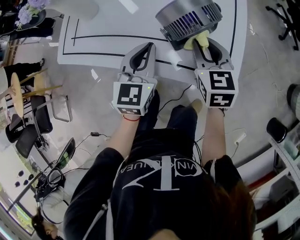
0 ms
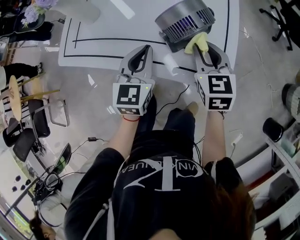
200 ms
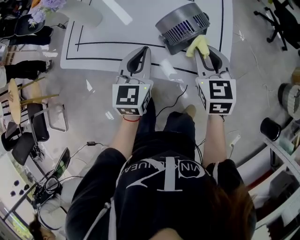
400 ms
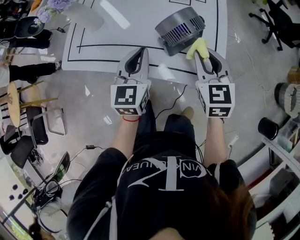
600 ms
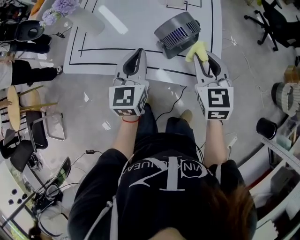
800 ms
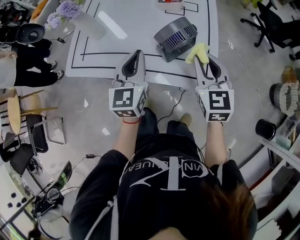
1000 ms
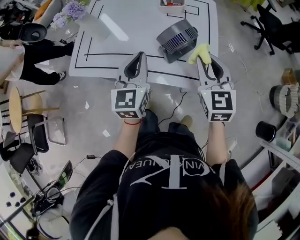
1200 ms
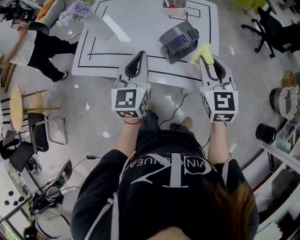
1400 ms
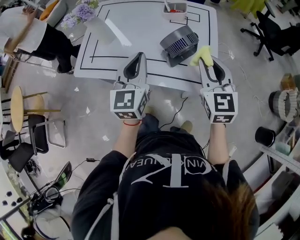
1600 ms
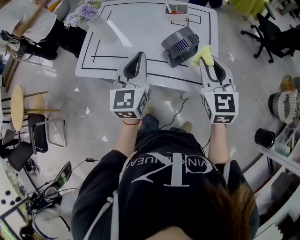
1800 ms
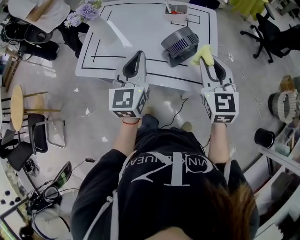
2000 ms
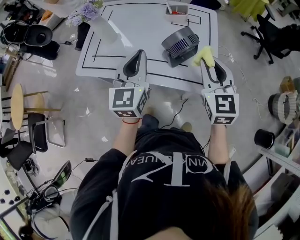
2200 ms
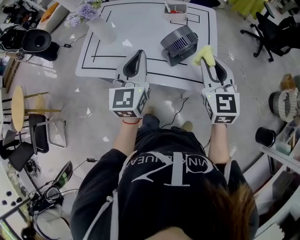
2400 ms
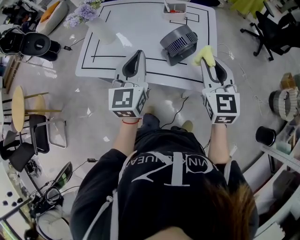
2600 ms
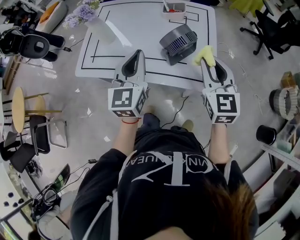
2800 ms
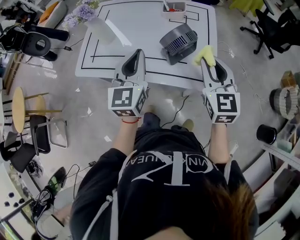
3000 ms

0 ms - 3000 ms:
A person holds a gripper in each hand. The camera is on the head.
0 ms - 1600 ms: The left gripper travels upward by approximately 15 cm, while the right gripper travels upward and backward by about 20 cm.
1600 ms - 3000 ms: The grippers stay close to where they were, moving slightly.

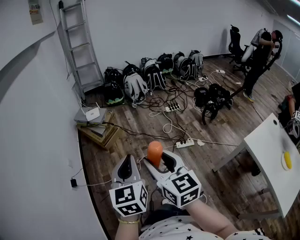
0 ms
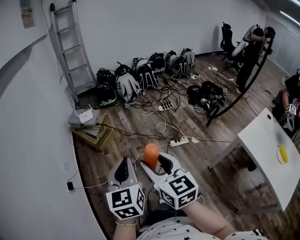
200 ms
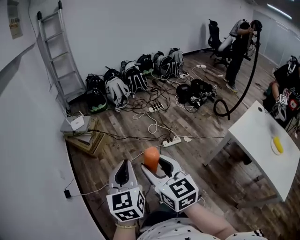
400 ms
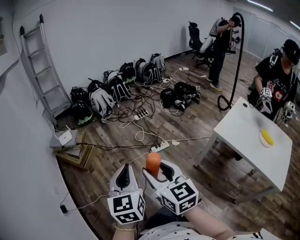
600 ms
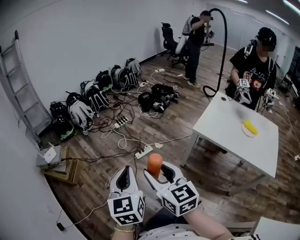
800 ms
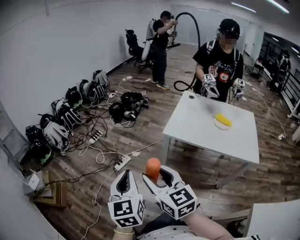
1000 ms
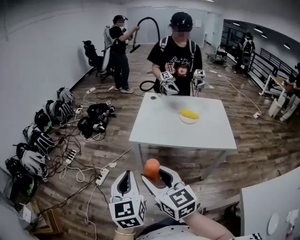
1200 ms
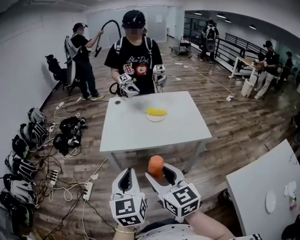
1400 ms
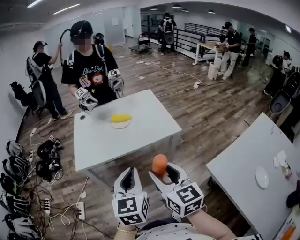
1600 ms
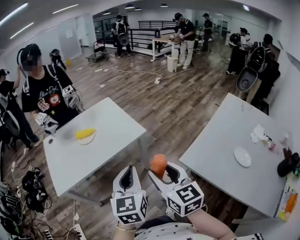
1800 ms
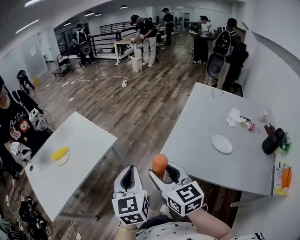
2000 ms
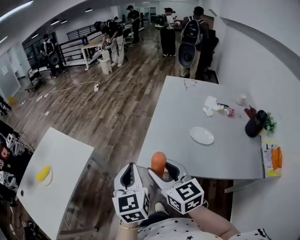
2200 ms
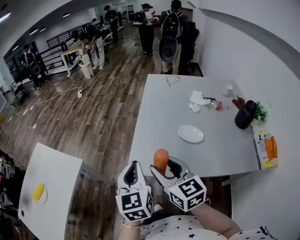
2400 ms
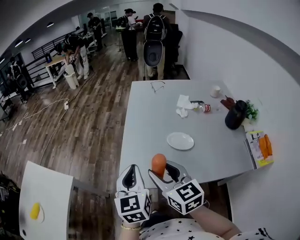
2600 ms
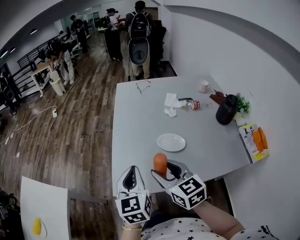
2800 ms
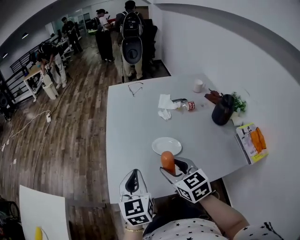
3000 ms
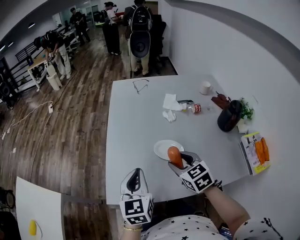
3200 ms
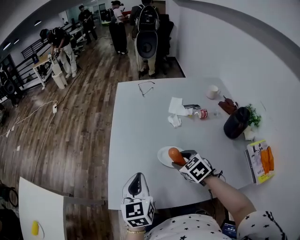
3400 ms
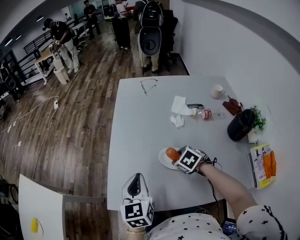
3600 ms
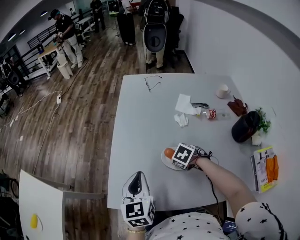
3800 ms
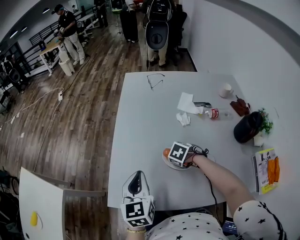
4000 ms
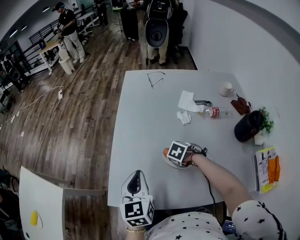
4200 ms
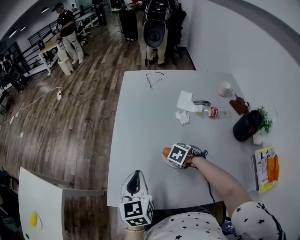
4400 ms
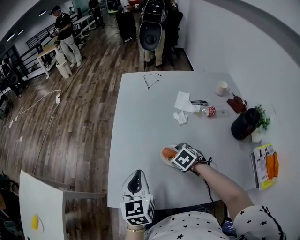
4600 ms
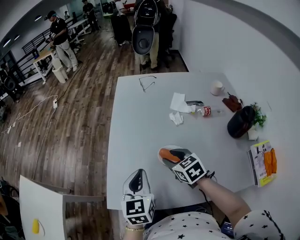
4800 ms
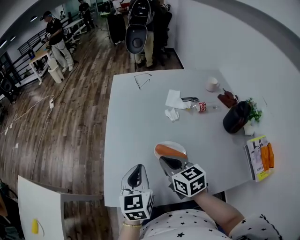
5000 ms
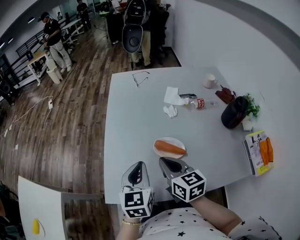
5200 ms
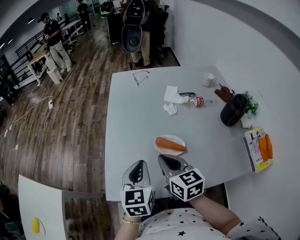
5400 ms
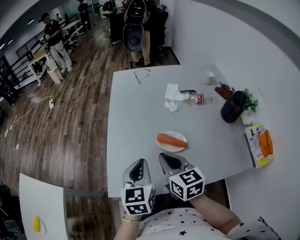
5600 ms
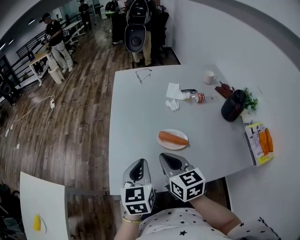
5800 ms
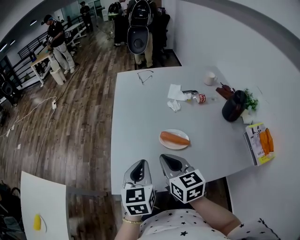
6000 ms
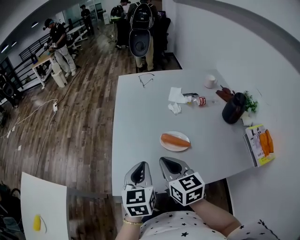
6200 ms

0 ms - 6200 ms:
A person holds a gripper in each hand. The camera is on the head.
0 ms - 1600 ms: The two grippers travel together, approximately 70 cm. The right gripper changes its angle by approximately 90 degrees. The left gripper turns by about 90 degrees.
1600 ms - 3200 ms: The two grippers travel together, approximately 60 cm. The left gripper changes its angle by roughly 70 degrees. Meanwhile the right gripper rotates about 70 degrees.
3200 ms - 4600 ms: The left gripper shifts by about 5 cm, while the right gripper shifts roughly 15 cm downward, and swivels roughly 30 degrees.
4600 ms - 6200 ms: The left gripper is displaced backward by some 5 cm. The right gripper shifts some 25 cm upward, backward and to the left, points its fingers roughly 40 degrees further upward, and closes up.

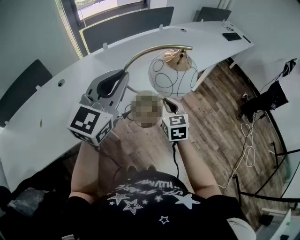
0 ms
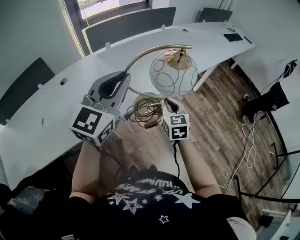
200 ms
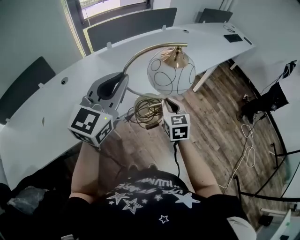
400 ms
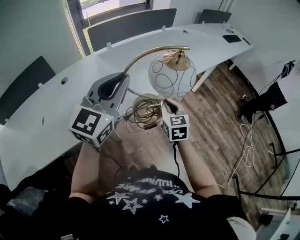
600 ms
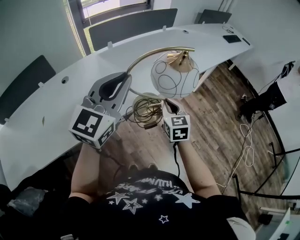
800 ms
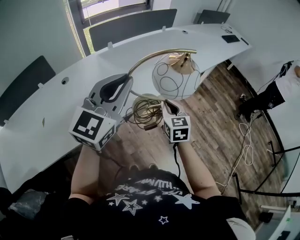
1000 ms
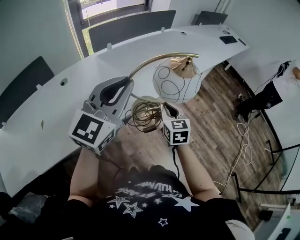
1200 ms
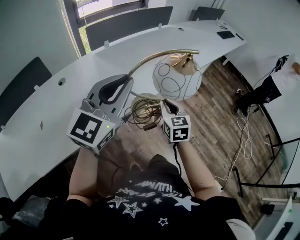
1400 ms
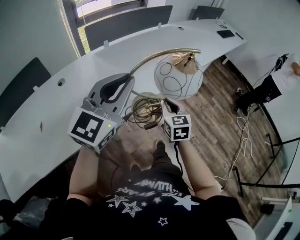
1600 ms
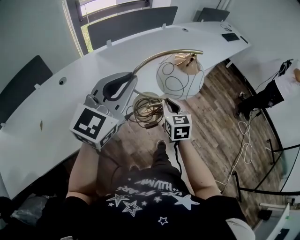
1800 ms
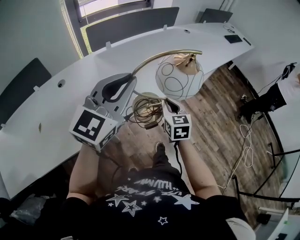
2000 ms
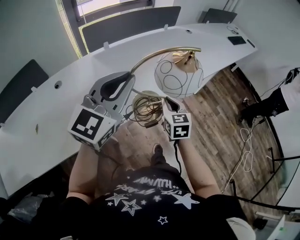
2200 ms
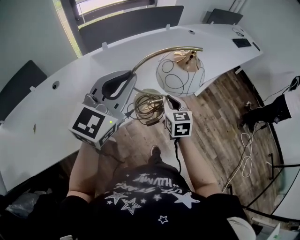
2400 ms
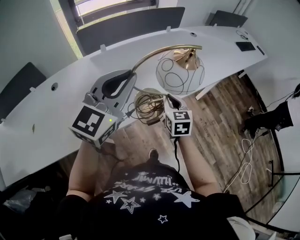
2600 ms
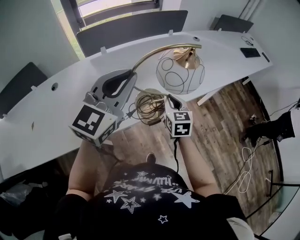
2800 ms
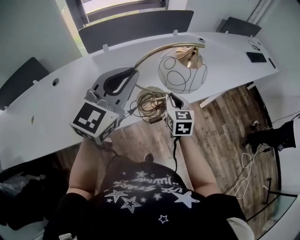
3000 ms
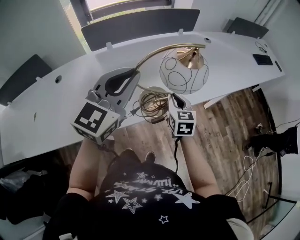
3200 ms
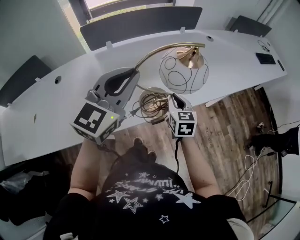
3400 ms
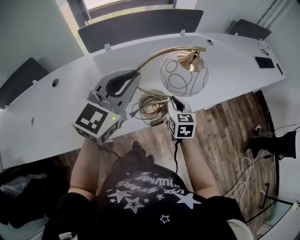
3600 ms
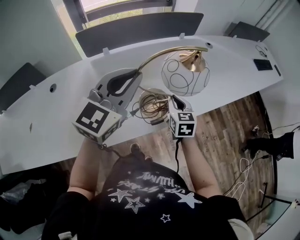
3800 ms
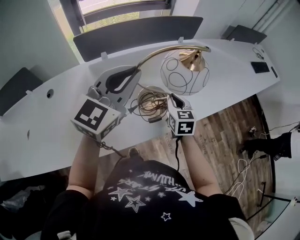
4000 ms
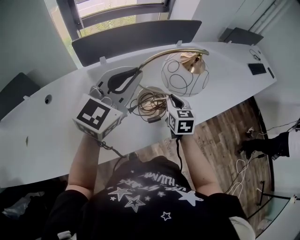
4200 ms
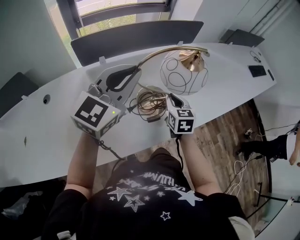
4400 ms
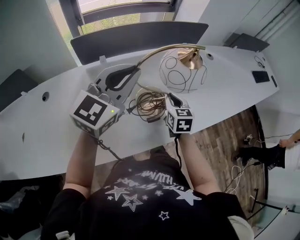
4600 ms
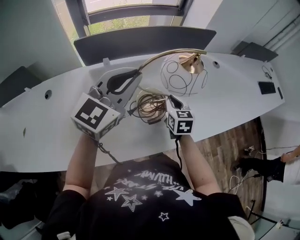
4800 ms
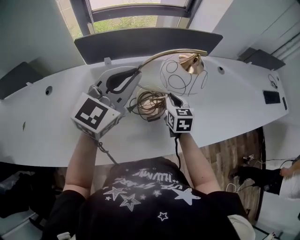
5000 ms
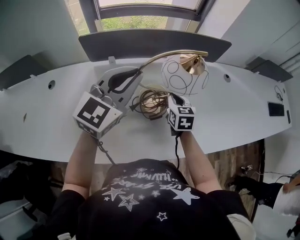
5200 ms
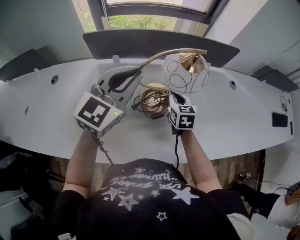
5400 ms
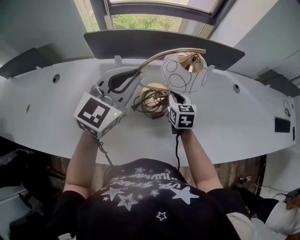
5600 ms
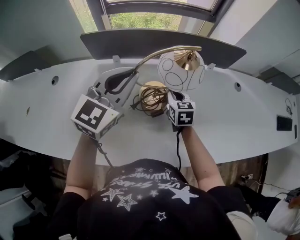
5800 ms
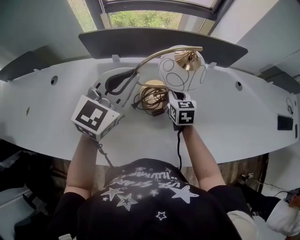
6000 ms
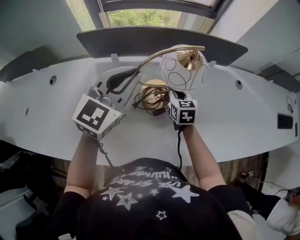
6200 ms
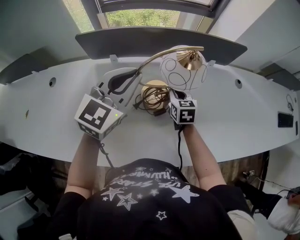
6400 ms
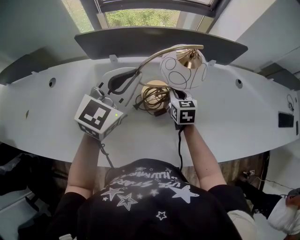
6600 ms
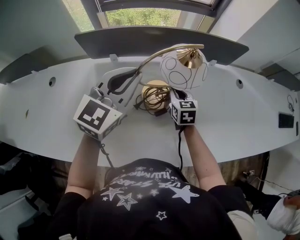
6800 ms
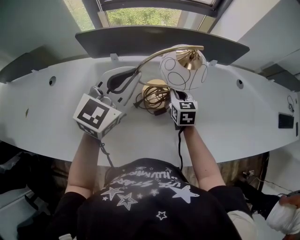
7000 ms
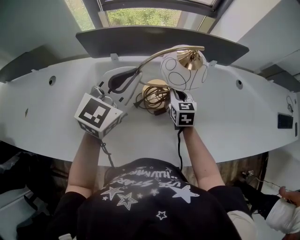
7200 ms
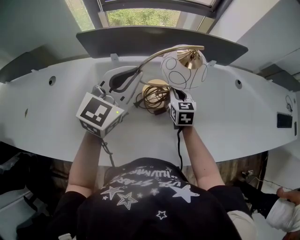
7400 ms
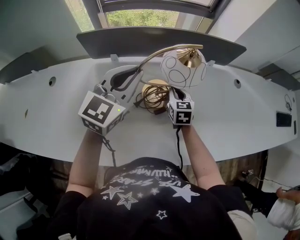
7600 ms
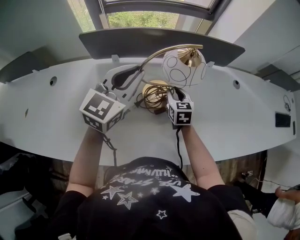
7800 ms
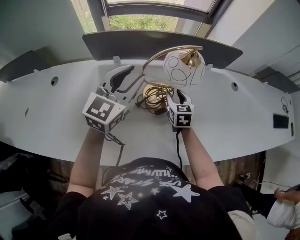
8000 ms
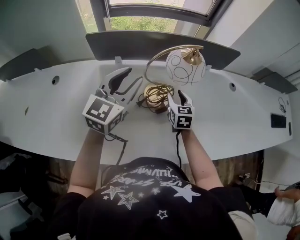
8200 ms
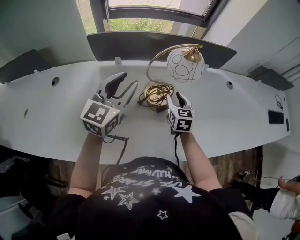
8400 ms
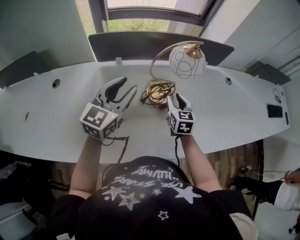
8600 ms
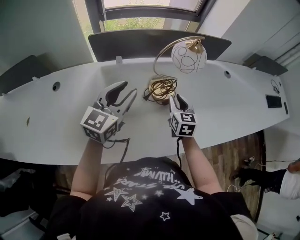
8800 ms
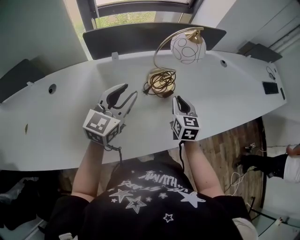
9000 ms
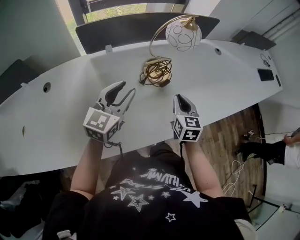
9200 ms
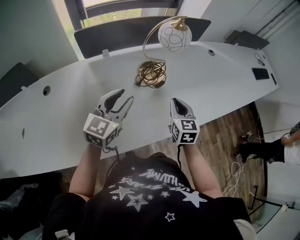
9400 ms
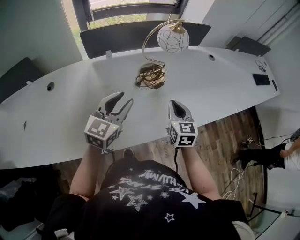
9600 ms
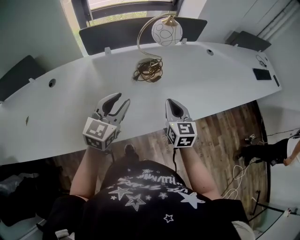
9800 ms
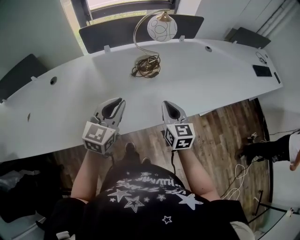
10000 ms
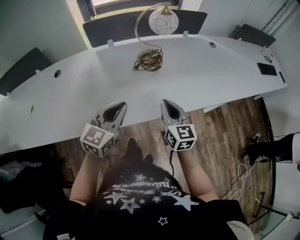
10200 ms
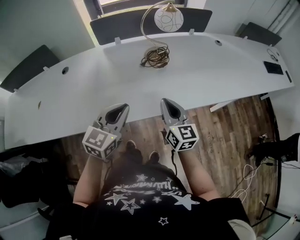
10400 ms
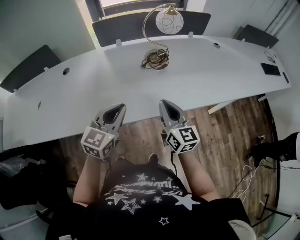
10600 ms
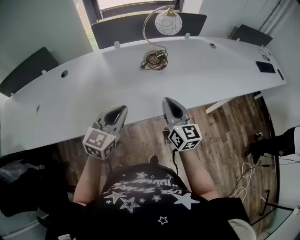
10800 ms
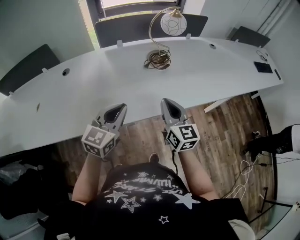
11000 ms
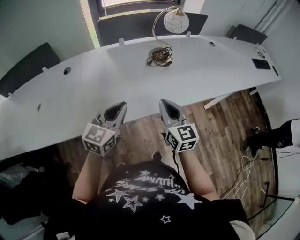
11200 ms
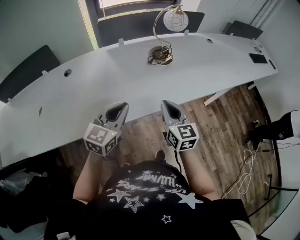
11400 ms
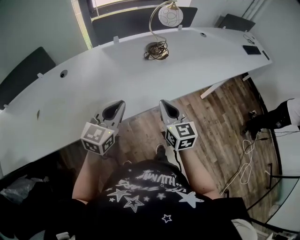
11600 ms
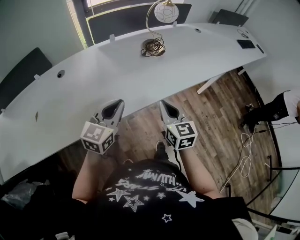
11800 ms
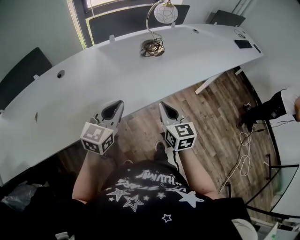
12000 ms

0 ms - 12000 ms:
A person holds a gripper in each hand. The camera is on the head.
0 ms - 1600 ms: The left gripper shifts by approximately 5 cm.
1600 ms - 3000 ms: The right gripper moves forward, some 25 cm. Meanwhile the left gripper travels forward and to the right by some 25 cm.
3000 ms - 4400 ms: The right gripper heads forward, covering about 10 cm. The left gripper travels forward and to the left by approximately 15 cm.
4400 ms - 6000 ms: Both grippers travel together forward, about 20 cm. The right gripper changes its angle by approximately 20 degrees, while the left gripper swivels approximately 20 degrees.
6000 ms - 7600 ms: The grippers move only a little.
7600 ms - 9000 ms: The left gripper is displaced backward, to the left and downward by approximately 15 cm, and opens its fingers, while the right gripper shifts some 15 cm backward, and opens, then closes again.
9000 ms - 10400 ms: The two grippers go approximately 25 cm backward. The left gripper closes its fingers; the right gripper rotates approximately 30 degrees.
10400 ms - 12000 ms: The left gripper shifts some 15 cm to the left and backward. The right gripper travels backward and to the left by some 20 cm.

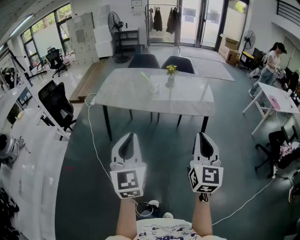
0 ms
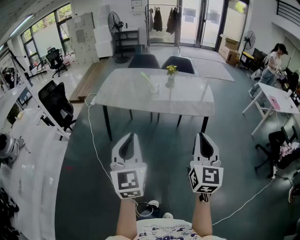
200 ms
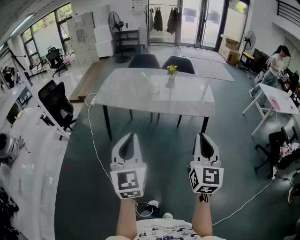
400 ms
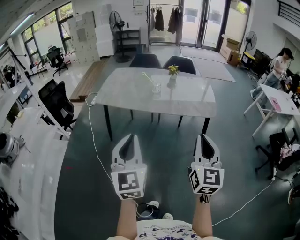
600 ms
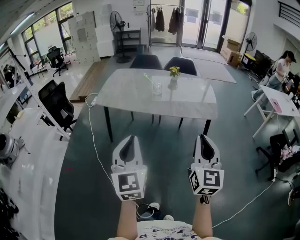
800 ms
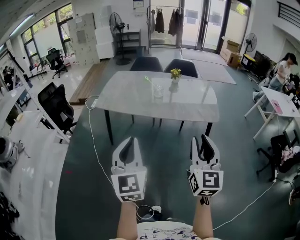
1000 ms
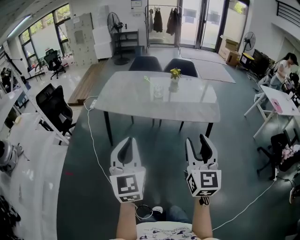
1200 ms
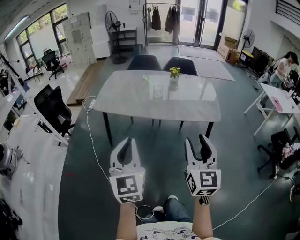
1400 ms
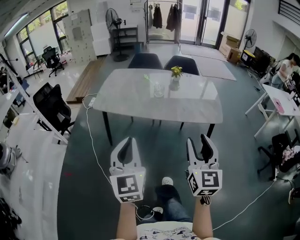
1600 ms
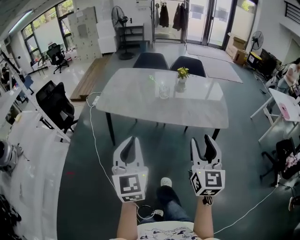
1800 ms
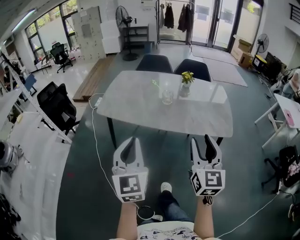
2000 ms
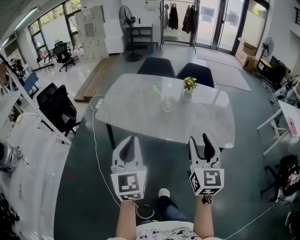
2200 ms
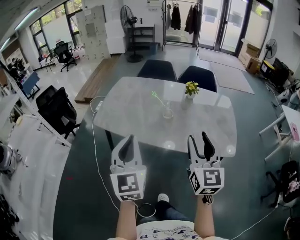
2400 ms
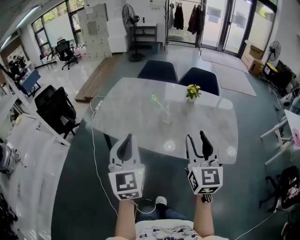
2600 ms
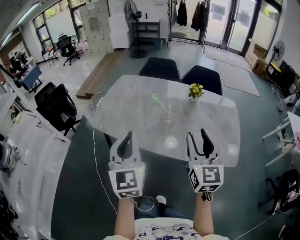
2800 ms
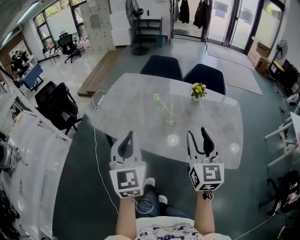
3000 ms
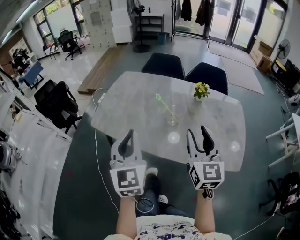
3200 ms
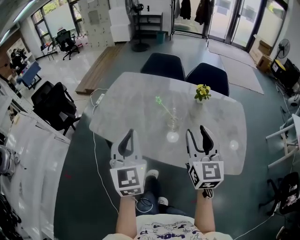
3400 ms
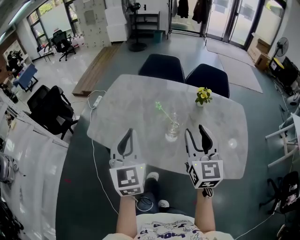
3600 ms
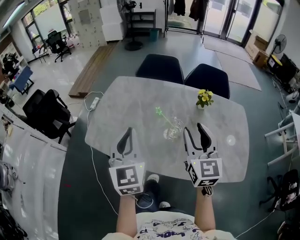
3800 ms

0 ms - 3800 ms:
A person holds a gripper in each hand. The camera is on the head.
0 ms - 1200 ms: The right gripper travels to the left and forward by about 10 cm, and opens its fingers, while the left gripper moves forward and to the left, some 10 cm.
1200 ms - 2600 ms: The grippers both shift forward by some 30 cm.
2600 ms - 3800 ms: Both grippers travel together forward, roughly 20 cm.
